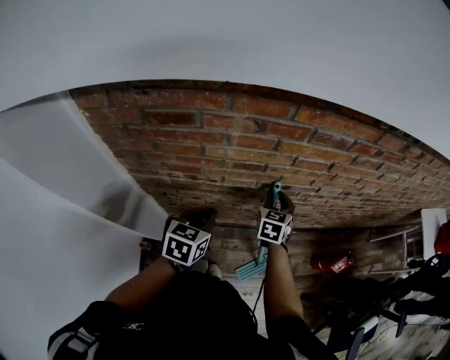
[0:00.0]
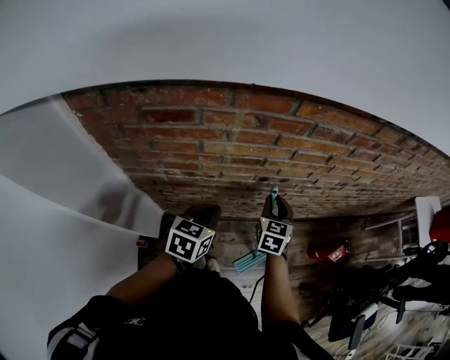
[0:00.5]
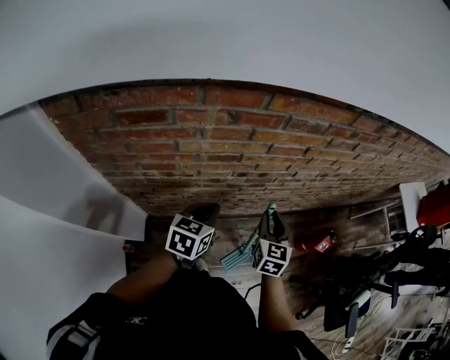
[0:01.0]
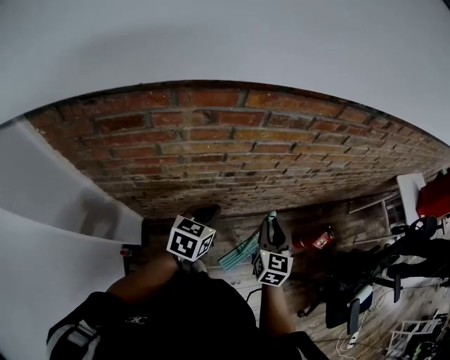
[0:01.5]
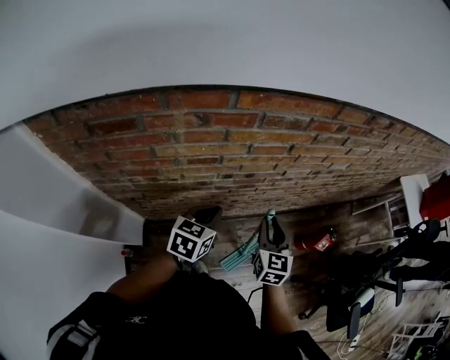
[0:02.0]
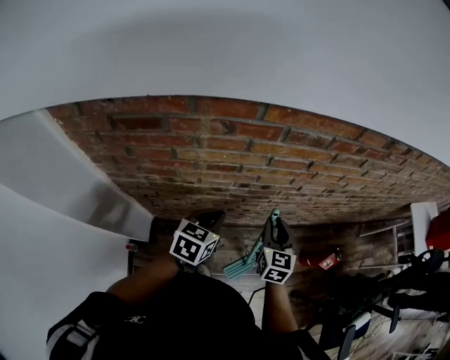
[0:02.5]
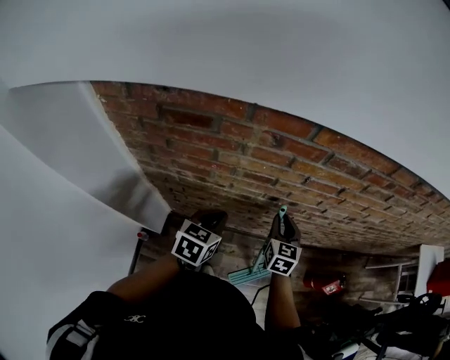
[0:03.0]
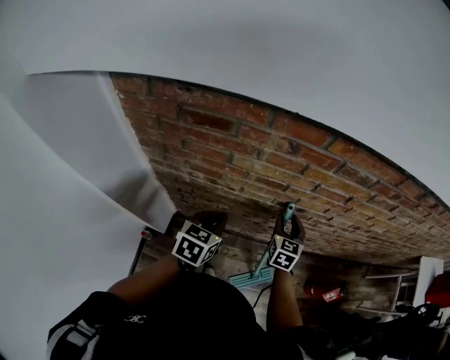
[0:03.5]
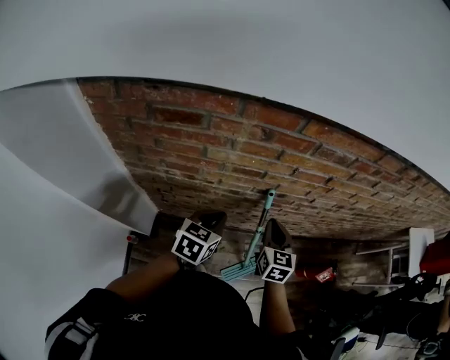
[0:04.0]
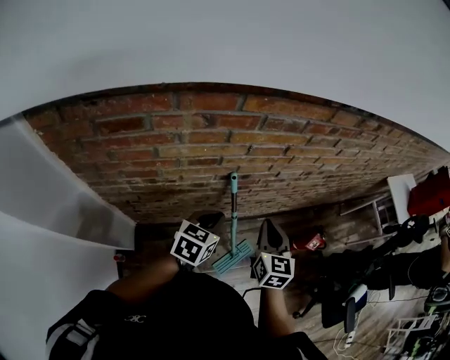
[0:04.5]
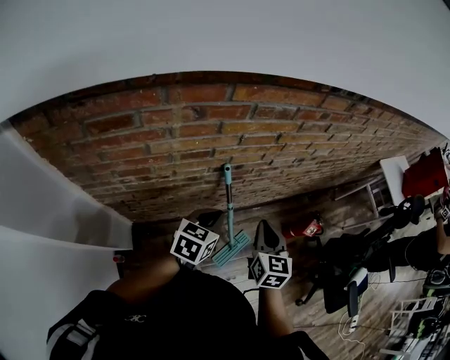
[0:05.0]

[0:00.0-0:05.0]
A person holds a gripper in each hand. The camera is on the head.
0:00.0 to 0:02.5: The left gripper moves to the right and forward, some 10 cm; the right gripper travels to the right and backward by approximately 10 cm.
0:02.5 to 0:05.0: The left gripper travels to the right by roughly 5 cm; the right gripper shifts roughly 10 cm backward.

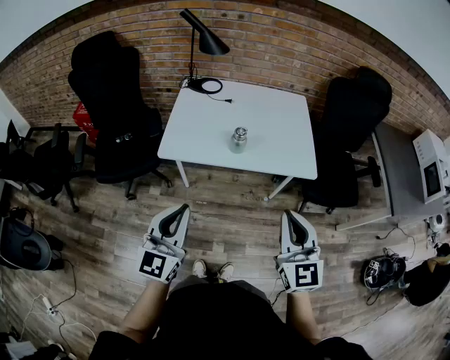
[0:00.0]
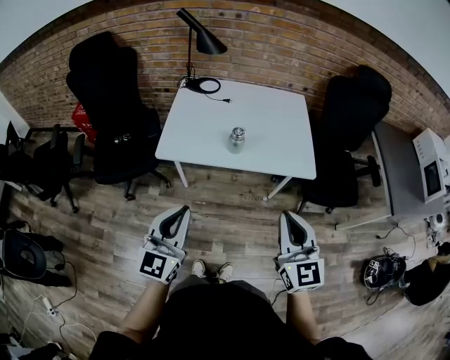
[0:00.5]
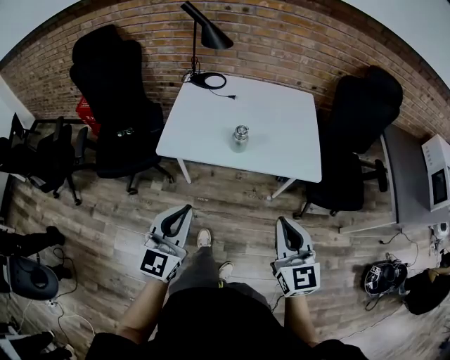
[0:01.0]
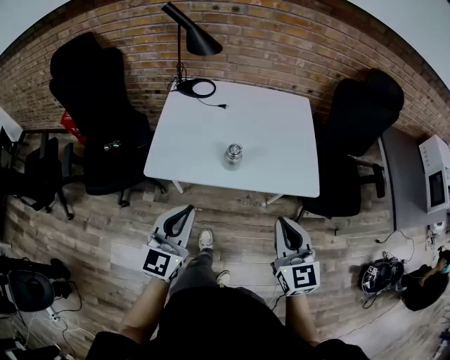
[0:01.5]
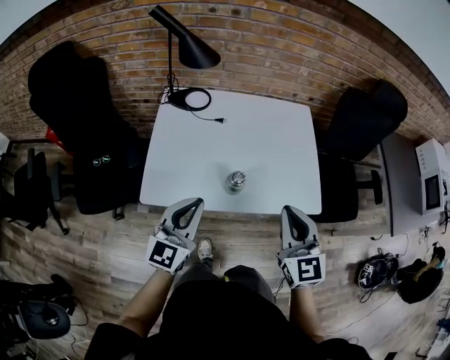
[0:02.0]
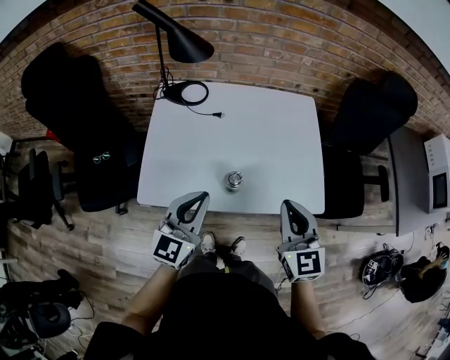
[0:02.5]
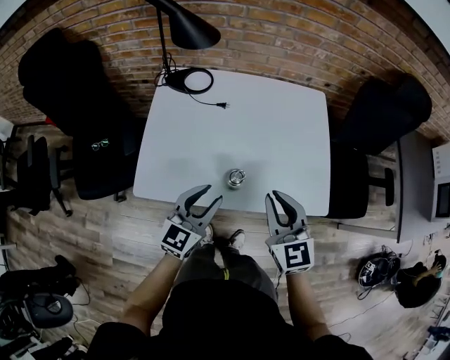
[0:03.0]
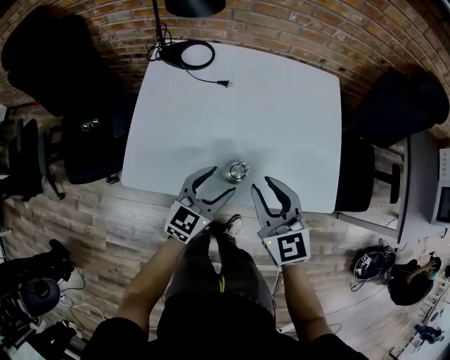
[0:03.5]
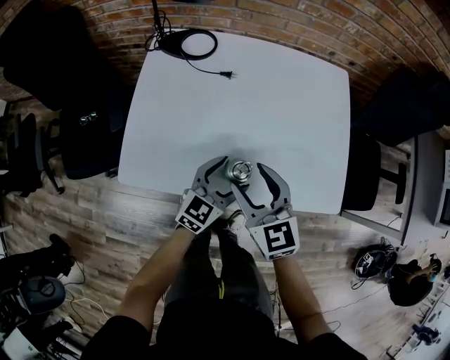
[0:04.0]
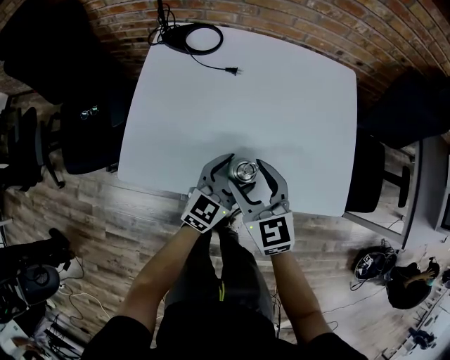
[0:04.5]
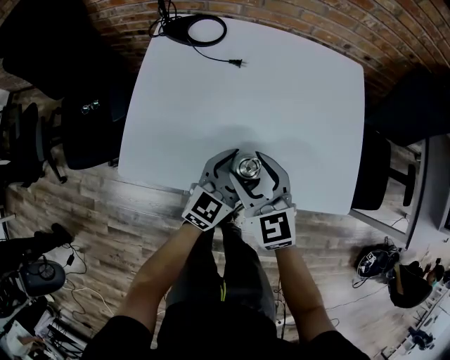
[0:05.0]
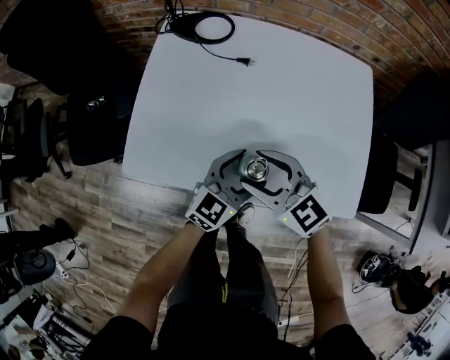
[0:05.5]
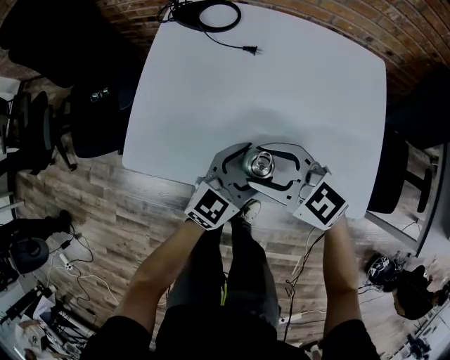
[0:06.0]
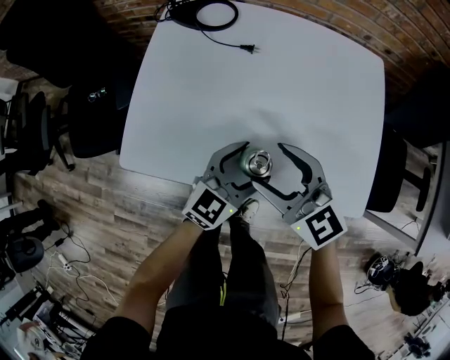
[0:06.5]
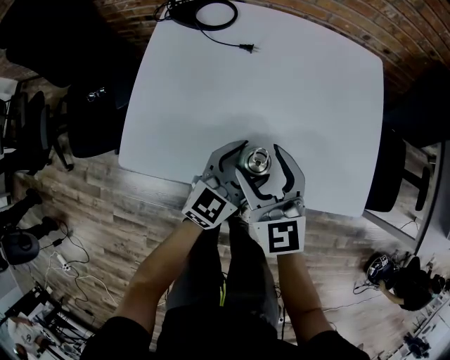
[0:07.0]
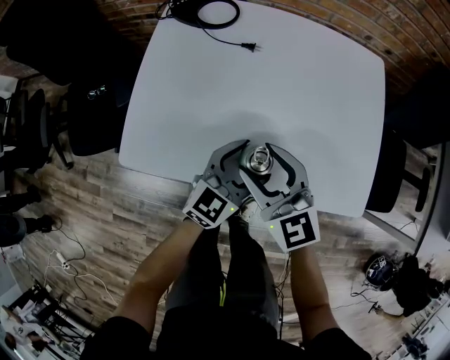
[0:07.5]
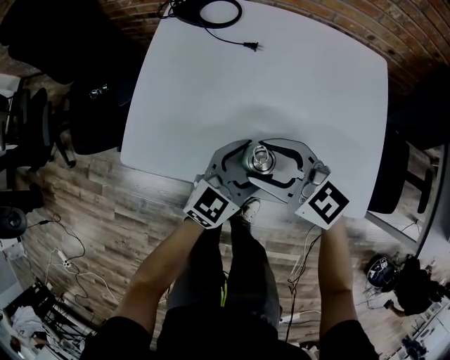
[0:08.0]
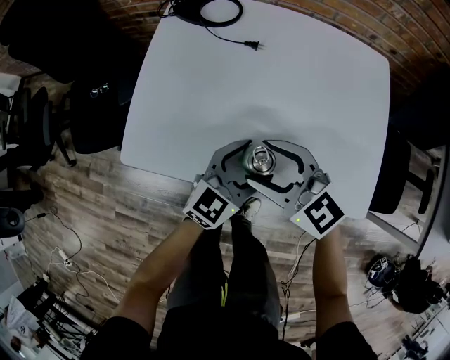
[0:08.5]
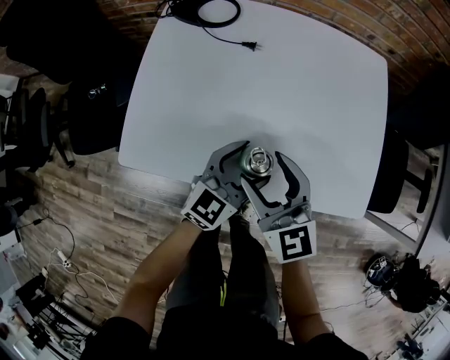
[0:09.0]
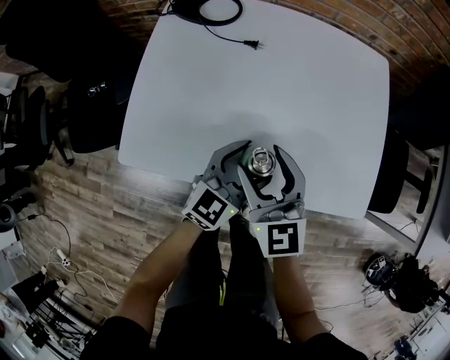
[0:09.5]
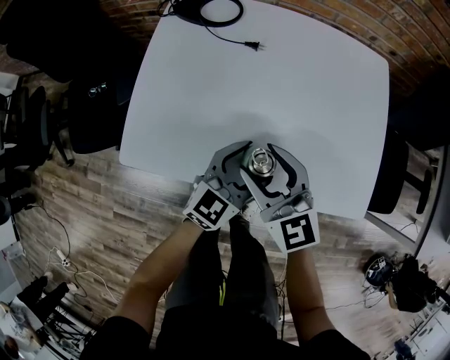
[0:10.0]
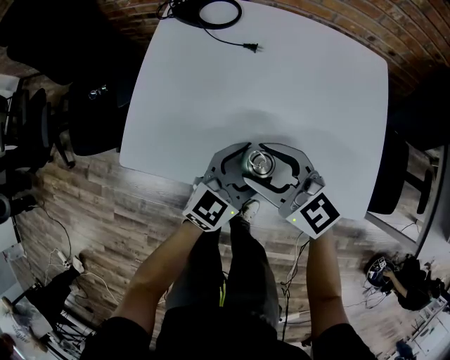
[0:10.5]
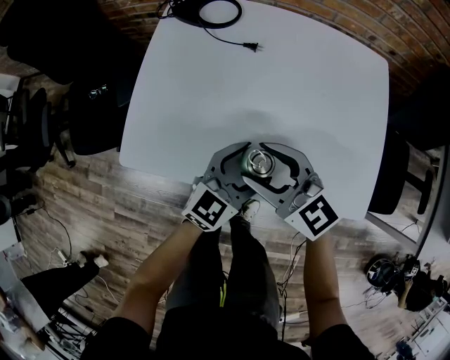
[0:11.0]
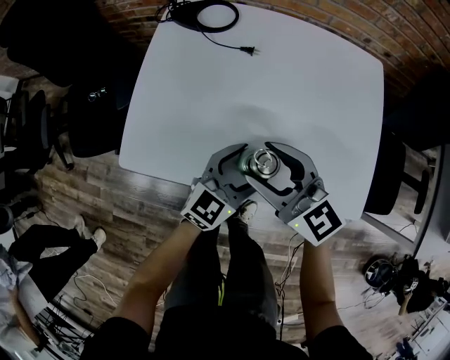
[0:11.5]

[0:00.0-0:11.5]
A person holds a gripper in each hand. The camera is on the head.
0:00.0 to 0:02.0: The two grippers go roughly 25 cm forward.
0:02.0 to 0:04.0: The left gripper travels downward, forward and to the right by roughly 30 cm, and opens; the right gripper moves downward, forward and to the left, some 20 cm, rotates approximately 20 degrees, and opens up.
0:04.0 to 0:06.0: The right gripper rotates approximately 40 degrees.
0:06.0 to 0:07.5: The right gripper changes its angle by some 30 degrees.
0:09.5 to 0:11.5: The right gripper rotates about 30 degrees.

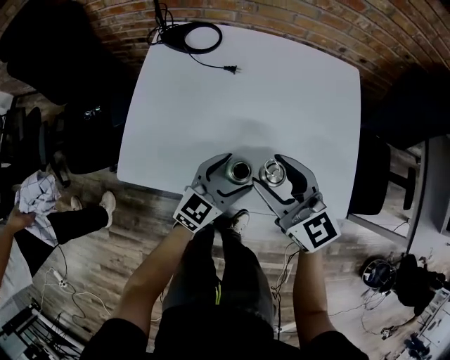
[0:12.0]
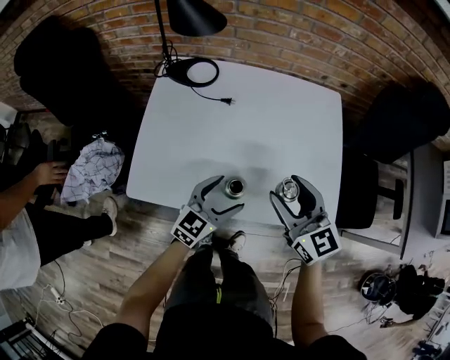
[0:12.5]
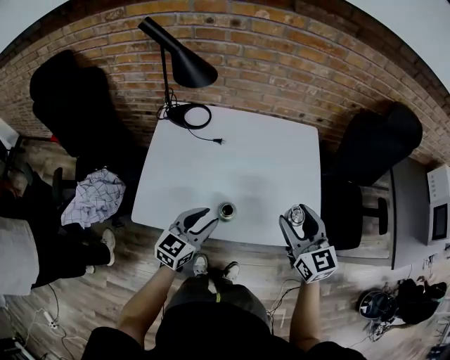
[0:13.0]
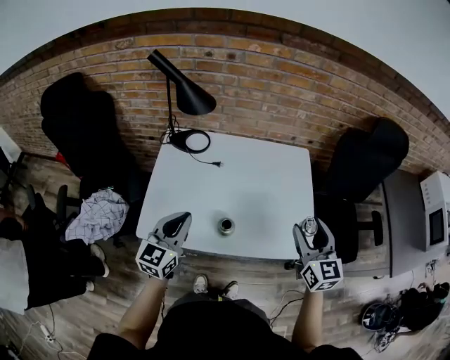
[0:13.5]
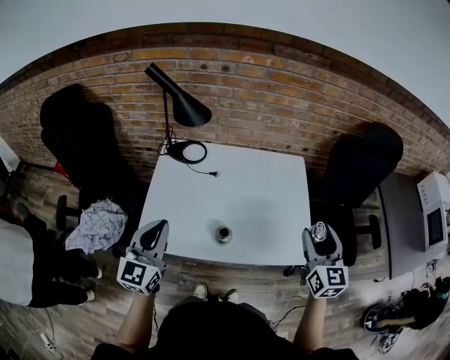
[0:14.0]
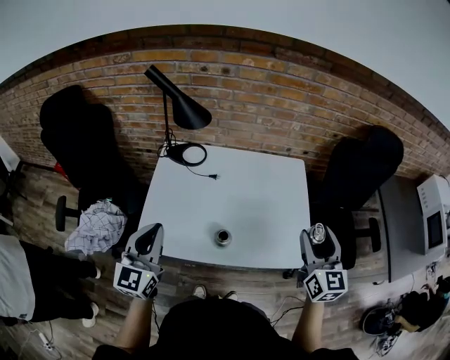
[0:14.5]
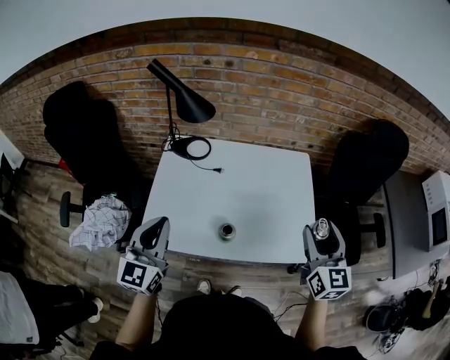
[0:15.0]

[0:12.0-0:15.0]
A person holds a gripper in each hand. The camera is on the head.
0:12.0 to 0:13.5: The left gripper is displaced upward and to the left by approximately 25 cm, turns by about 20 degrees, and closes its fingers. Meanwhile the right gripper moves to the right and upward, some 25 cm, and rotates approximately 30 degrees.
0:13.5 to 0:15.0: The left gripper moves upward, approximately 10 cm. Meanwhile the right gripper goes some 5 cm upward.

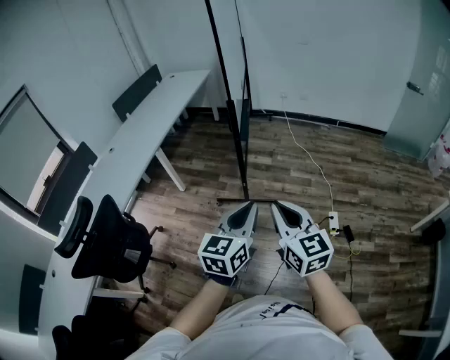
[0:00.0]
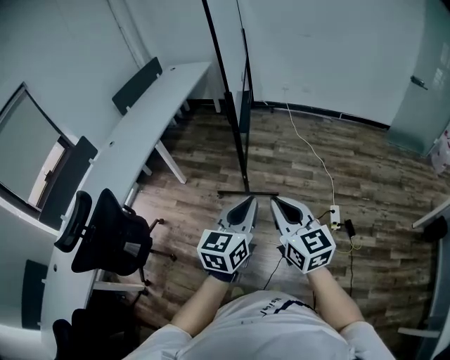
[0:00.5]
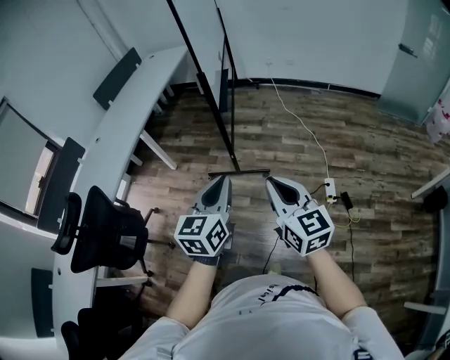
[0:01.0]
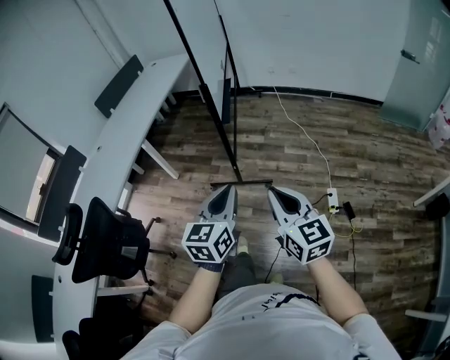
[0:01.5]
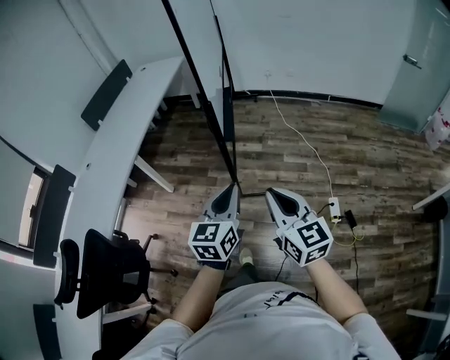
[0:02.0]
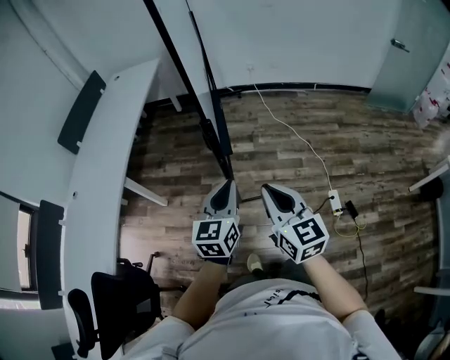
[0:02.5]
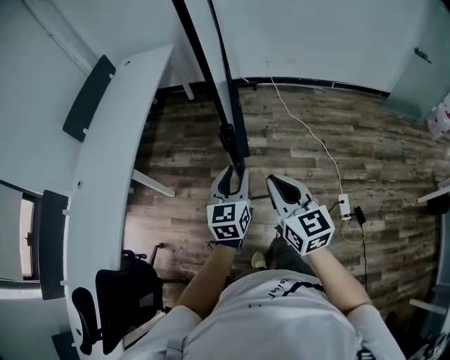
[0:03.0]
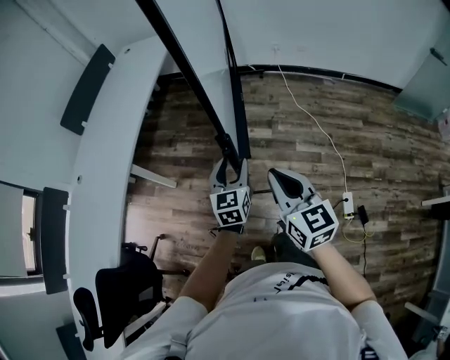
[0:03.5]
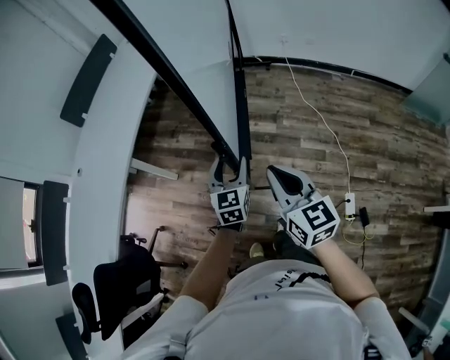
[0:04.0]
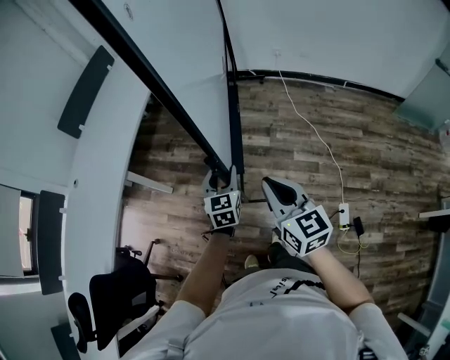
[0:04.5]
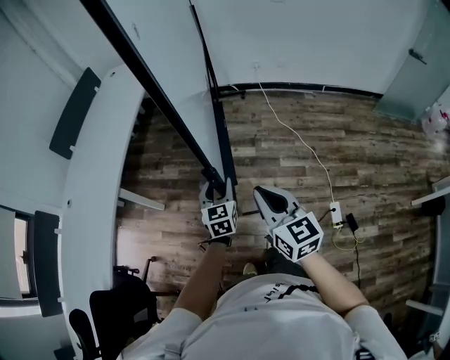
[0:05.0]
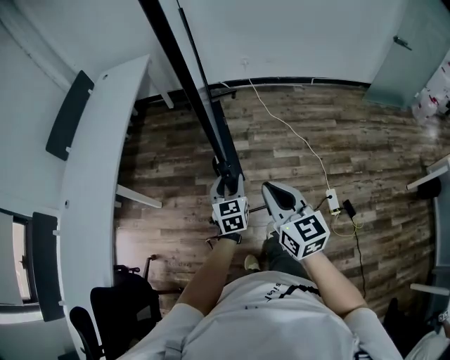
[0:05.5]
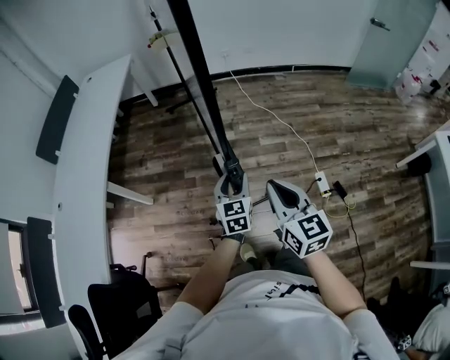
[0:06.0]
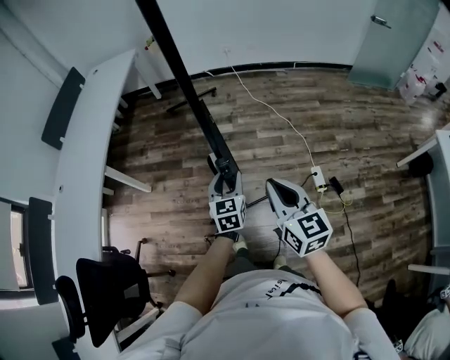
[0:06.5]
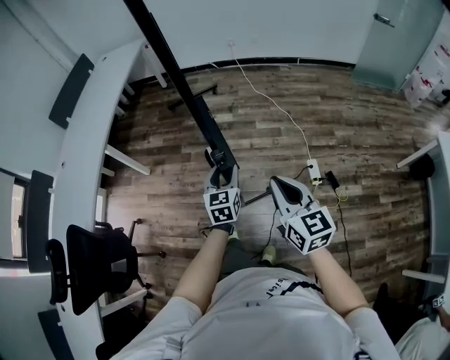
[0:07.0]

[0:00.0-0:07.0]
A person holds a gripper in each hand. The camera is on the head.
0:00.0 to 0:02.0: The grippers both shift forward by roughly 20 cm.
0:02.0 to 0:03.5: The right gripper heads forward, covering some 25 cm; the left gripper travels forward and downward by roughly 35 cm, and opens.
0:03.5 to 0:05.0: The grippers stay close to where they were, moving slightly.
0:05.0 to 0:07.0: The two grippers go approximately 35 cm backward and to the right.
